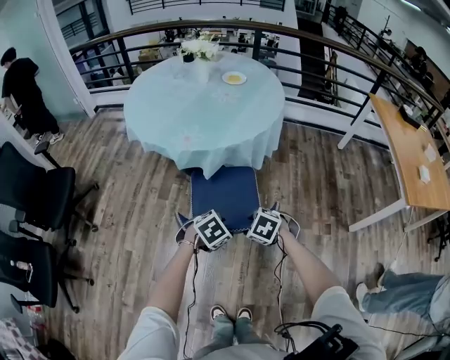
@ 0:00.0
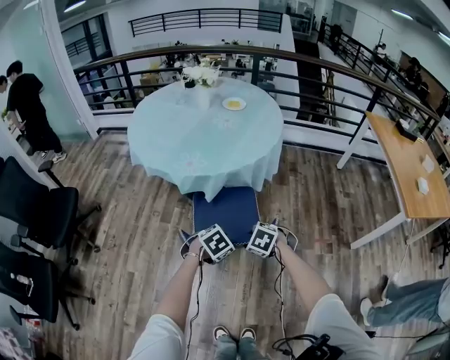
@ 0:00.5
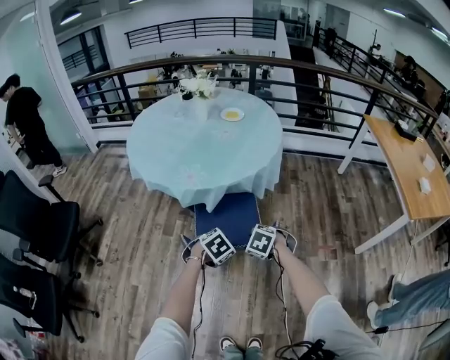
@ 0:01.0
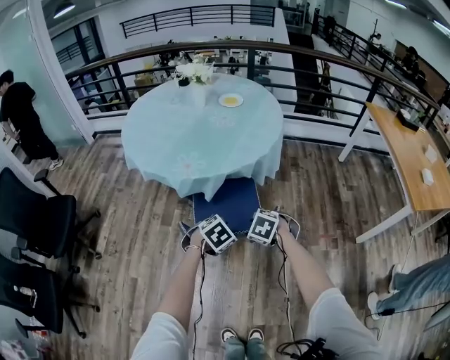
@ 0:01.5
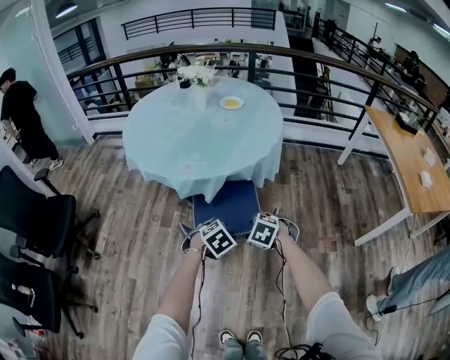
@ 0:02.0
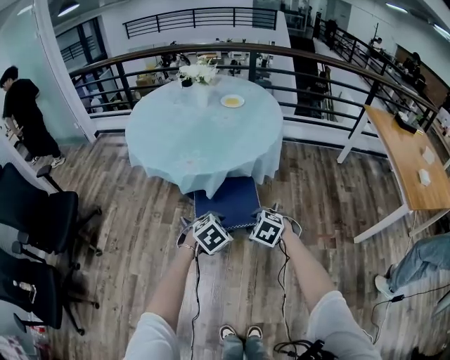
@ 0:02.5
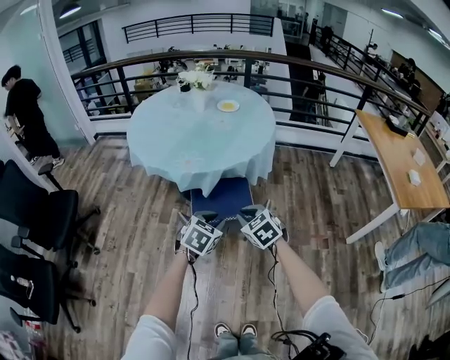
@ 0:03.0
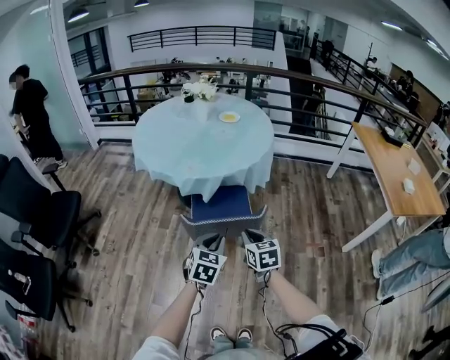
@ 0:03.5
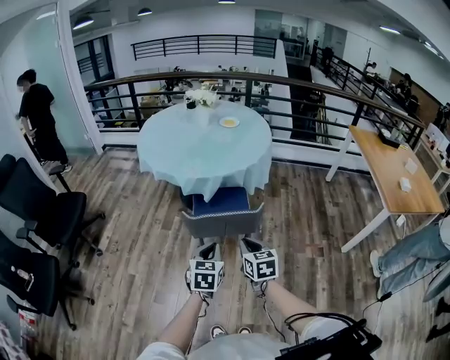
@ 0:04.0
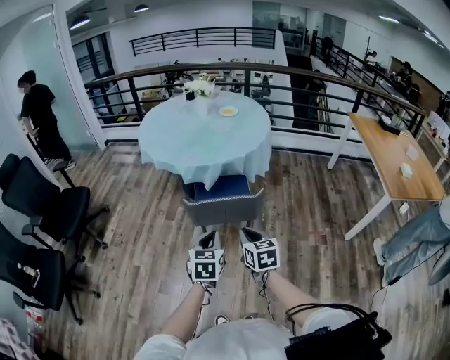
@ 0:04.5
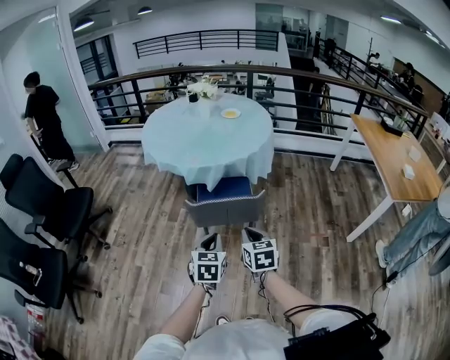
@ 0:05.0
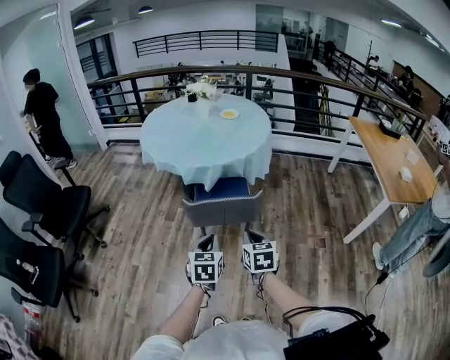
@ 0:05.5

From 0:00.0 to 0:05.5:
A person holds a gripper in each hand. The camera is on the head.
From 0:00.0 to 0:02.0: The left gripper shifts by some 10 cm. The right gripper changes place by approximately 10 cm.
From 0:02.0 to 0:03.5: Both grippers move upward and backward, roughly 15 cm. The left gripper tips its fingers upward by about 30 degrees, and closes, while the right gripper angles its fingers upward, by about 40 degrees, and closes its fingers.
From 0:03.5 to 0:05.5: The grippers both shift backward by some 10 cm.

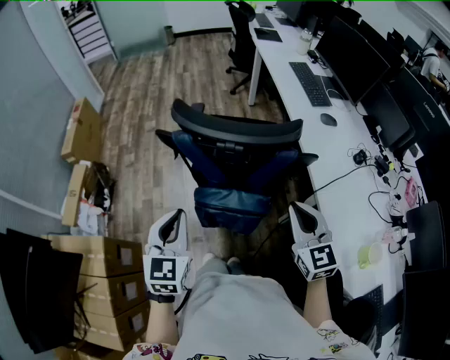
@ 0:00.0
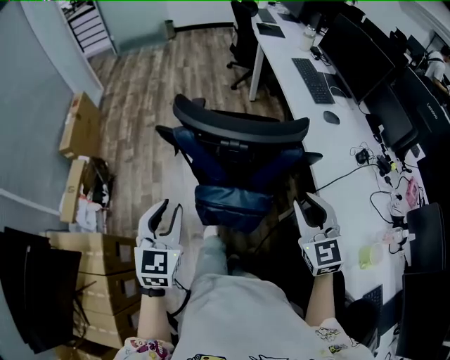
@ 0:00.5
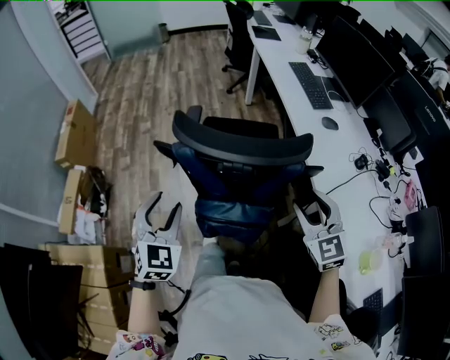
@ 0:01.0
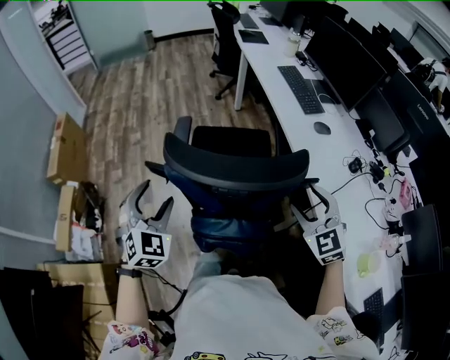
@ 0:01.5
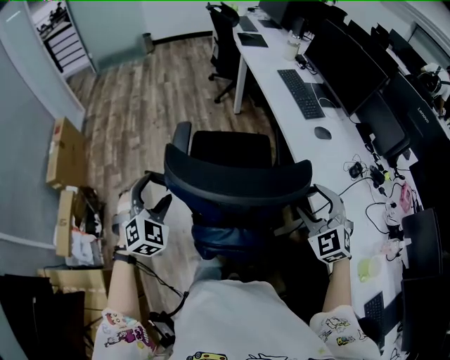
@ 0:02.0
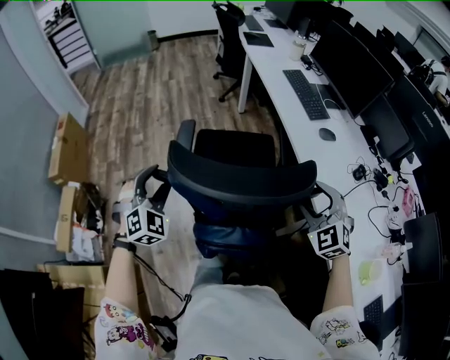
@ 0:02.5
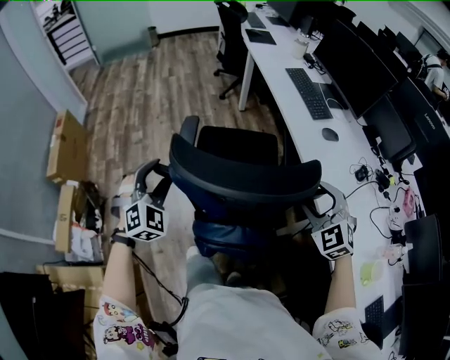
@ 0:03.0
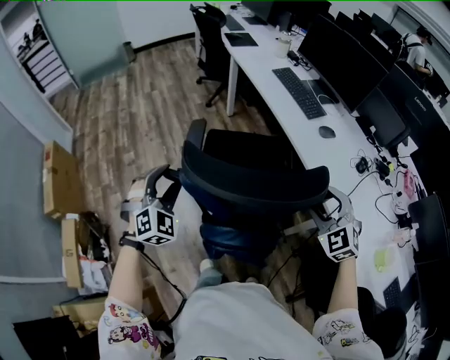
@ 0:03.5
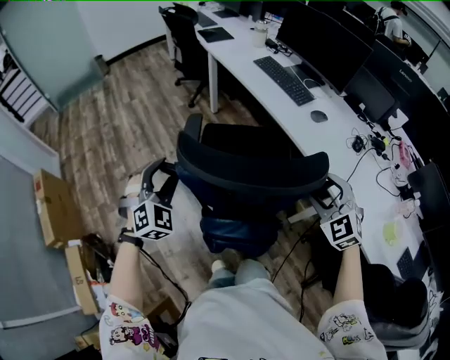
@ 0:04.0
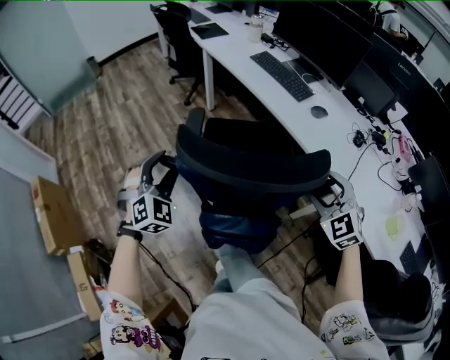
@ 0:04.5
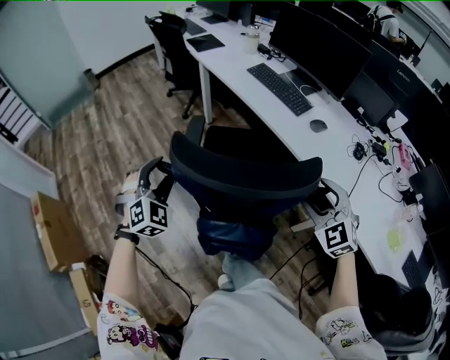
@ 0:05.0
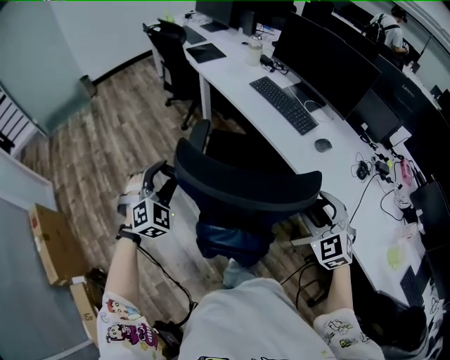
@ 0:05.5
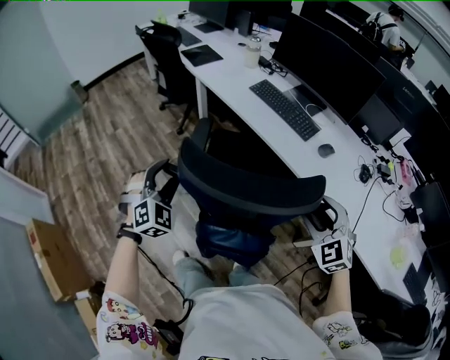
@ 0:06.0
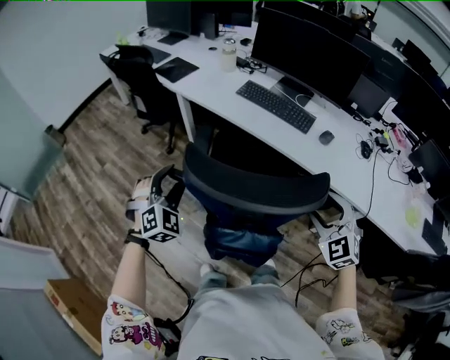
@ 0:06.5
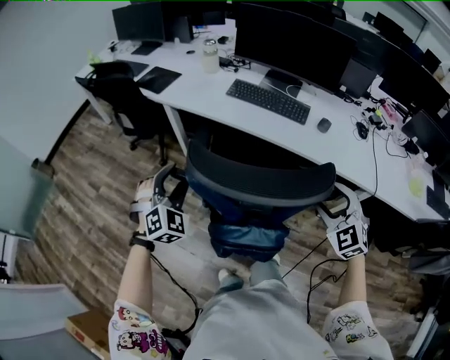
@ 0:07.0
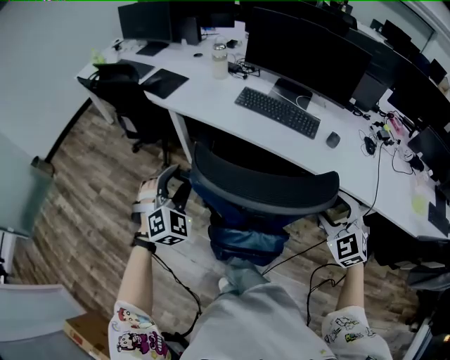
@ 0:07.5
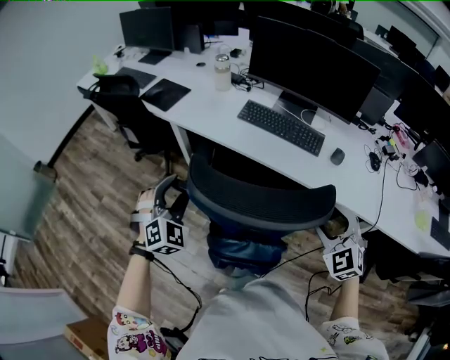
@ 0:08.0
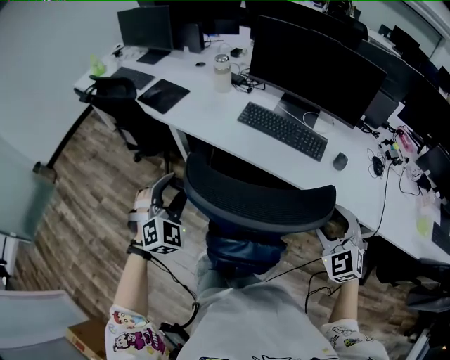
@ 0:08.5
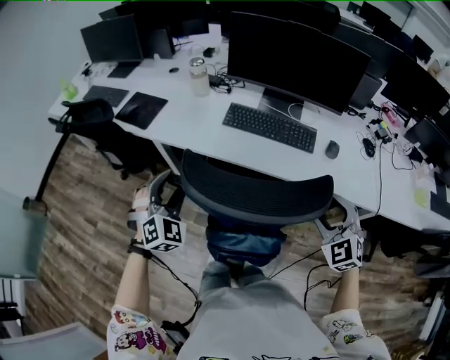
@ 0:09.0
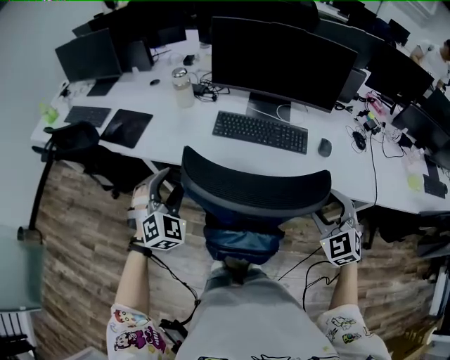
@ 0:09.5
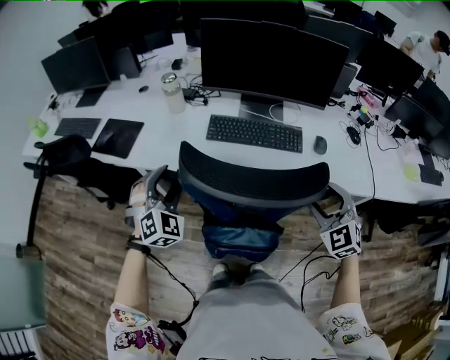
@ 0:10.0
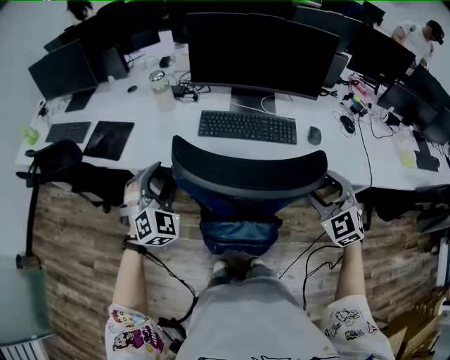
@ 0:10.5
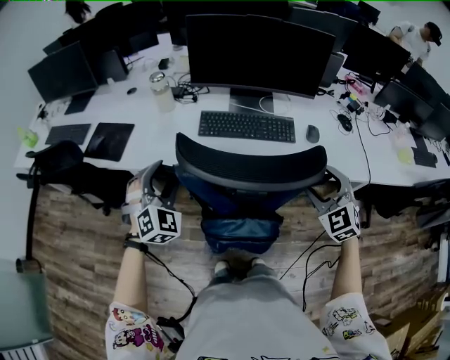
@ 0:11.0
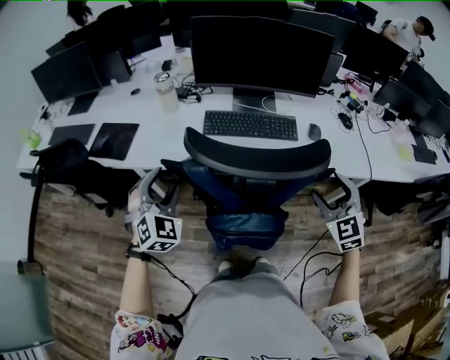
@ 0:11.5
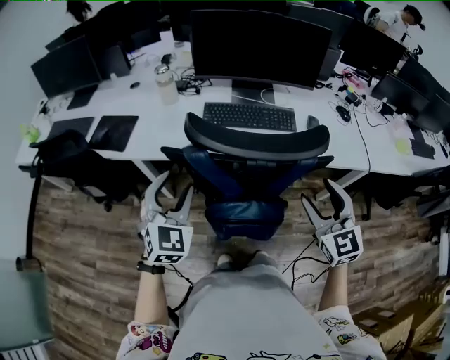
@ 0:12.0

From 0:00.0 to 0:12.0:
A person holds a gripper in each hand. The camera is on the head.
From 0:00.0 to 0:02.0: The left gripper moves forward, approximately 20 cm, rolls clockwise, seen from behind, by roughly 50 degrees, and opens up. Meanwhile the right gripper goes about 15 cm forward and to the right, rotates approximately 40 degrees, and opens its fingers.
From 0:02.0 to 0:04.0: The right gripper travels to the left by approximately 5 cm, while the left gripper travels forward by about 15 cm, and turns by approximately 20 degrees.
From 0:04.0 to 0:06.0: The left gripper travels forward by about 25 cm. The right gripper is displaced forward by some 15 cm.
From 0:06.0 to 0:08.0: The right gripper shifts approximately 15 cm to the left and forward, and turns by approximately 20 degrees. The left gripper goes some 25 cm forward and to the left, and turns by approximately 20 degrees.
From 0:08.0 to 0:10.0: The right gripper heads forward, covering roughly 10 cm; the left gripper moves forward, some 20 cm.
From 0:10.0 to 0:12.0: The right gripper travels backward and to the left by approximately 10 cm, and turns by approximately 30 degrees; the left gripper shifts roughly 10 cm backward, and rotates about 20 degrees.

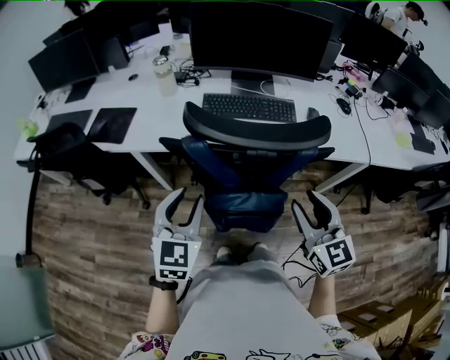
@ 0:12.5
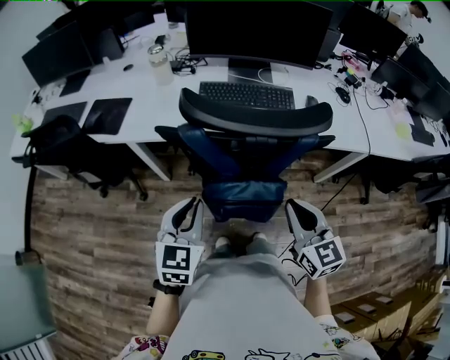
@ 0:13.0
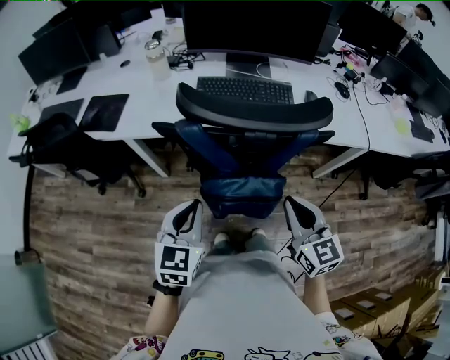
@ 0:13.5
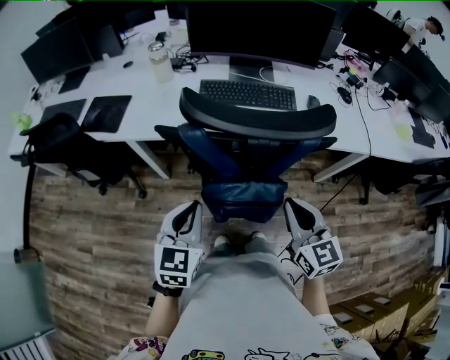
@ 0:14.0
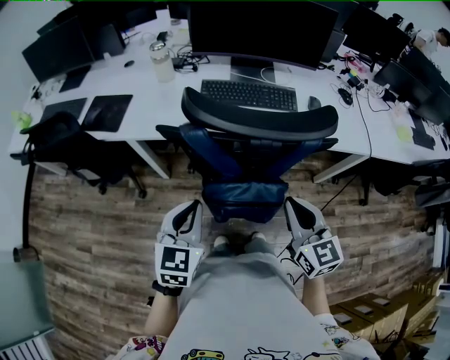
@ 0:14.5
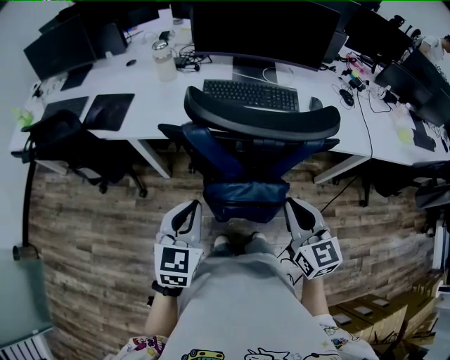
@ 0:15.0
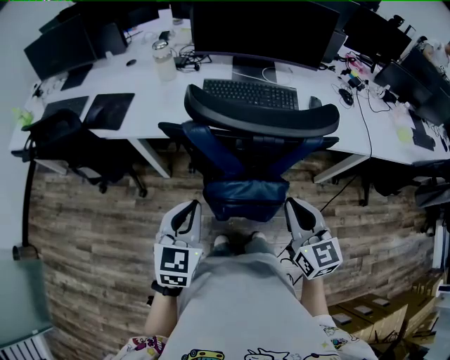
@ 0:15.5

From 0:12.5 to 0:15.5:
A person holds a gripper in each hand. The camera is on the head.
From 0:12.5 to 0:14.0: The left gripper moves approximately 5 cm, and closes; the right gripper ends up about 5 cm from where it was, and closes.
From 0:14.0 to 0:15.5: Neither gripper changes place.

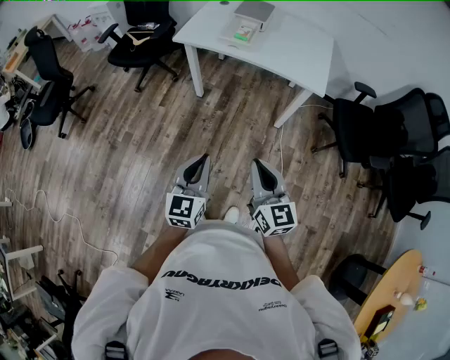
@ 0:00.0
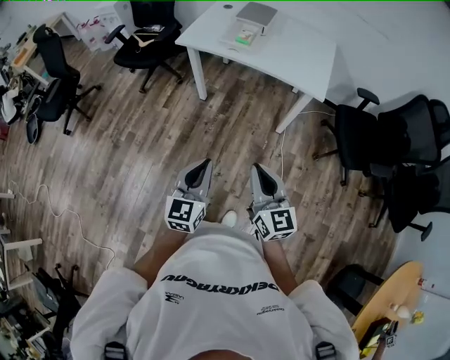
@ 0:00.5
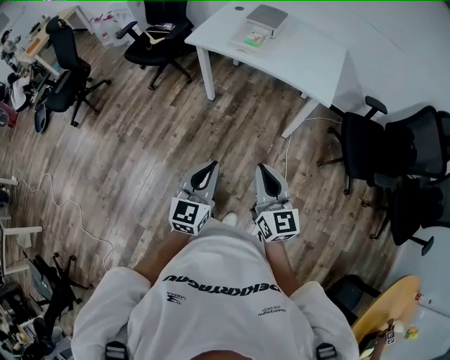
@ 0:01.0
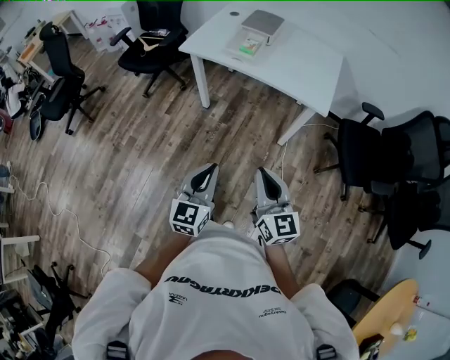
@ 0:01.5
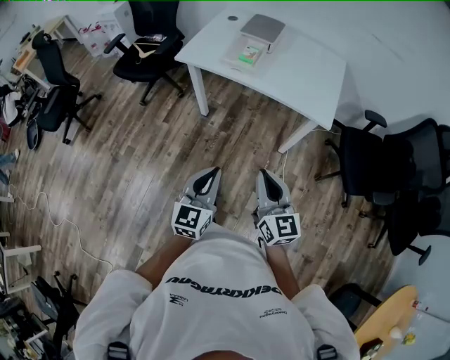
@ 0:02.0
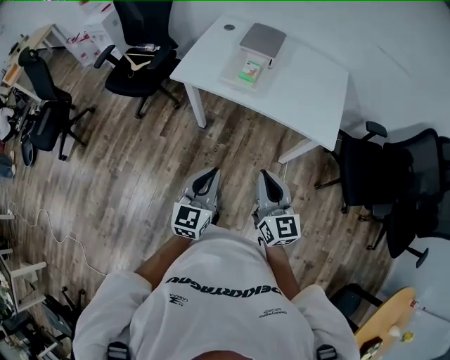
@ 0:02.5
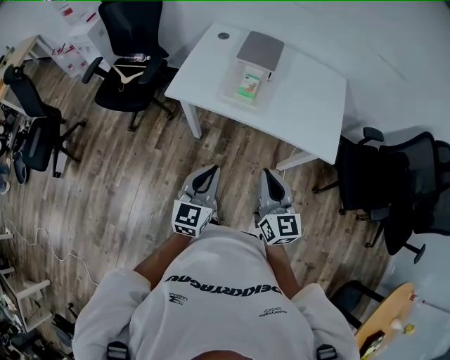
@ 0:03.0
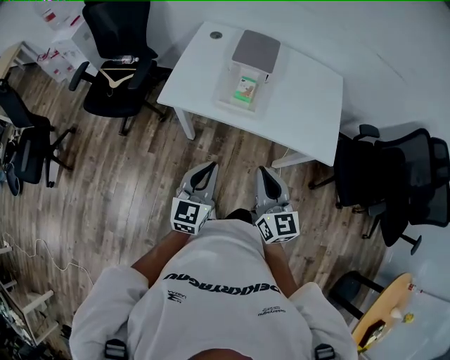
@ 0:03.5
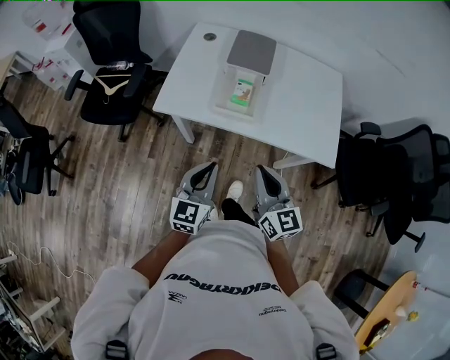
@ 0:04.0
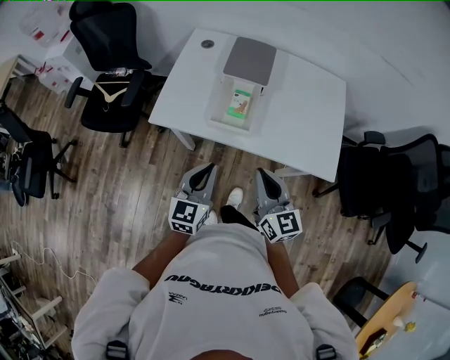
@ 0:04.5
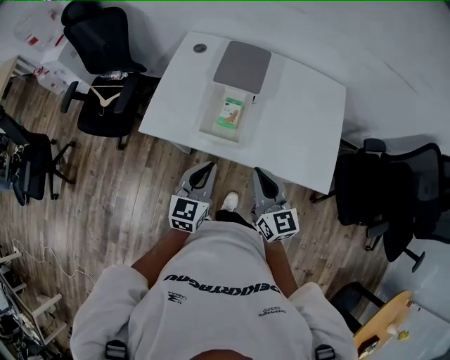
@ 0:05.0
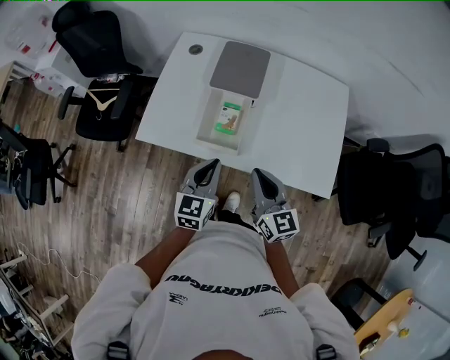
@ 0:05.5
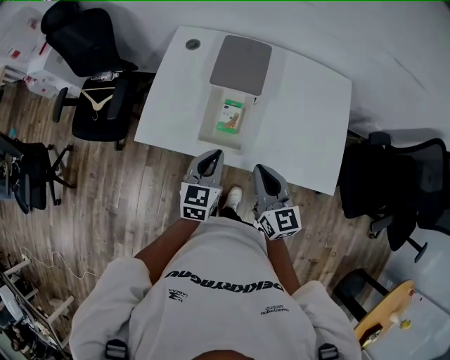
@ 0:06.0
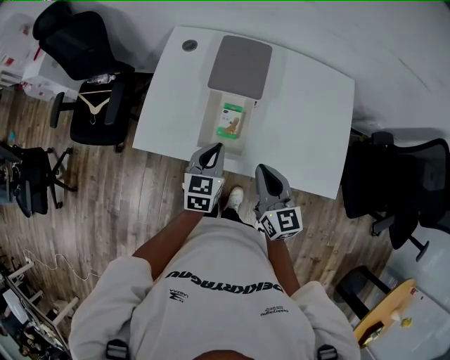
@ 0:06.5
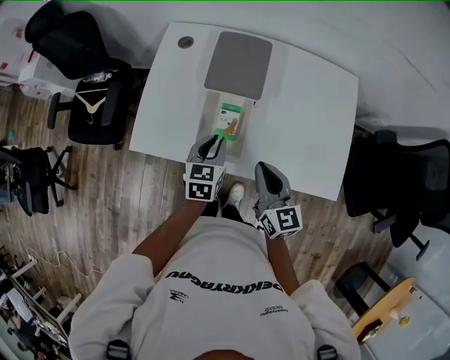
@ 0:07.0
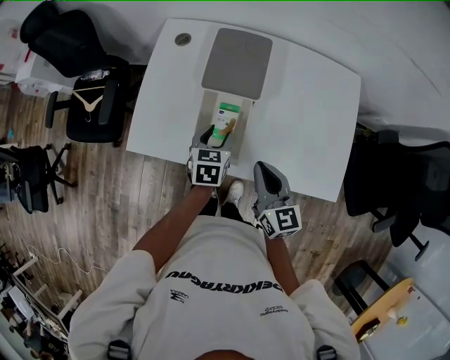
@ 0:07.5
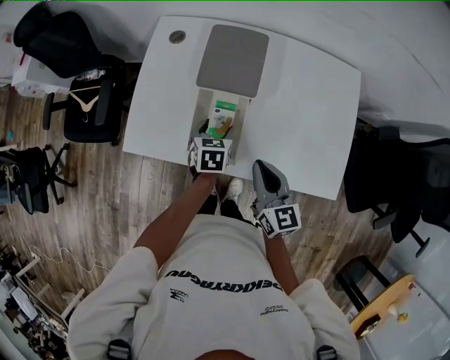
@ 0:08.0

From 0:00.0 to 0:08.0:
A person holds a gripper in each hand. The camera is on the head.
From 0:00.0 to 0:02.0: The two grippers go roughly 15 cm forward and to the right.
From 0:02.0 to 0:04.0: The grippers both shift forward by roughly 30 cm.
From 0:04.0 to 0:06.0: The two grippers go roughly 20 cm forward.
From 0:06.0 to 0:08.0: The left gripper shifts roughly 20 cm forward and downward, turns by approximately 30 degrees, and opens up, while the right gripper travels forward by about 5 cm.
